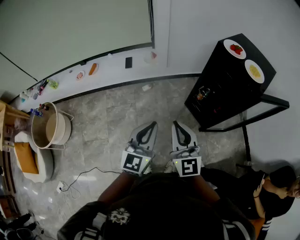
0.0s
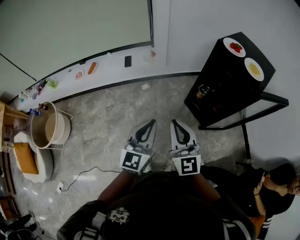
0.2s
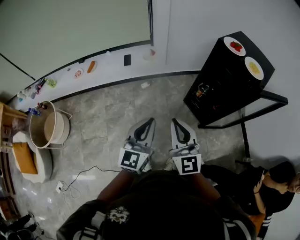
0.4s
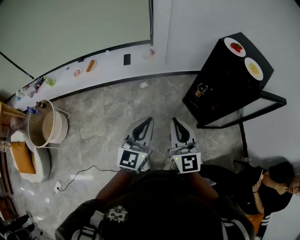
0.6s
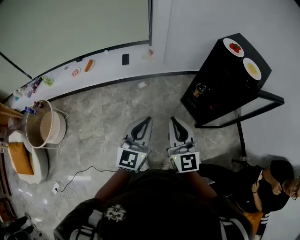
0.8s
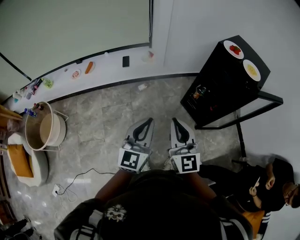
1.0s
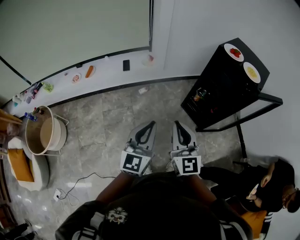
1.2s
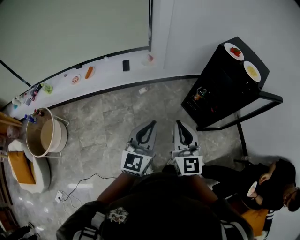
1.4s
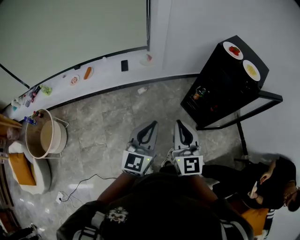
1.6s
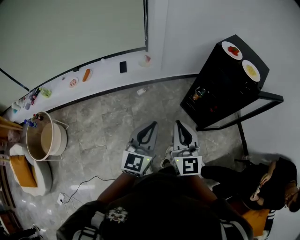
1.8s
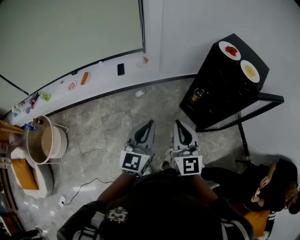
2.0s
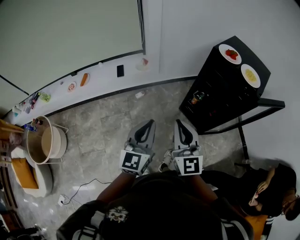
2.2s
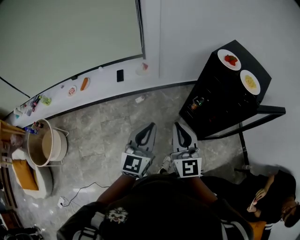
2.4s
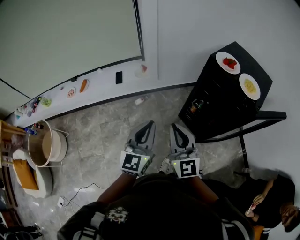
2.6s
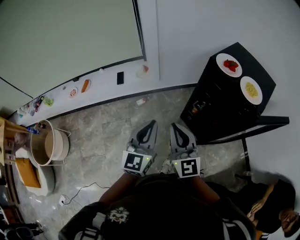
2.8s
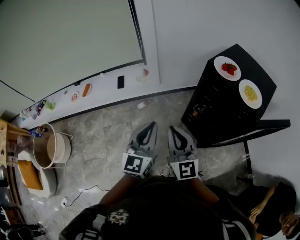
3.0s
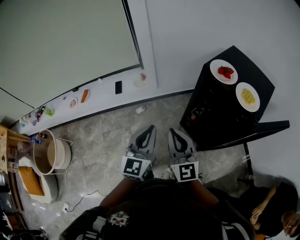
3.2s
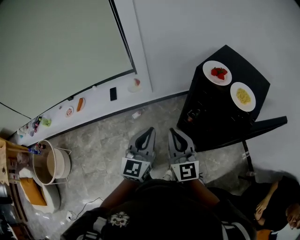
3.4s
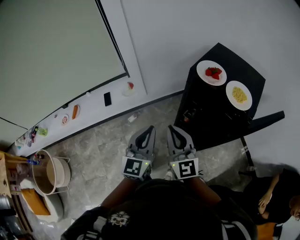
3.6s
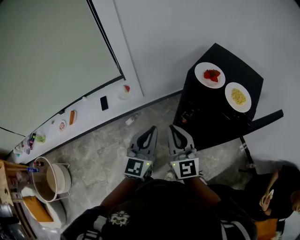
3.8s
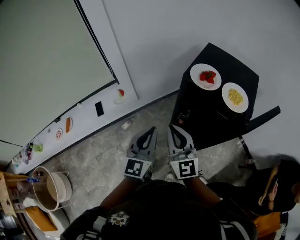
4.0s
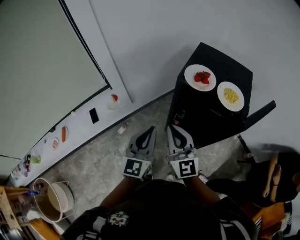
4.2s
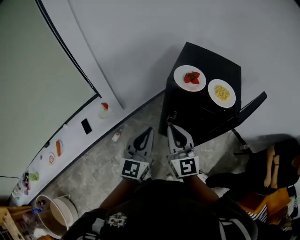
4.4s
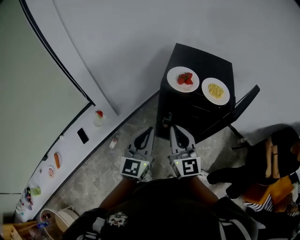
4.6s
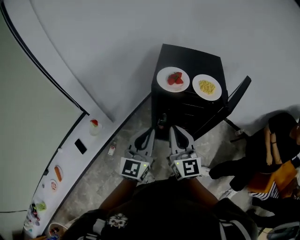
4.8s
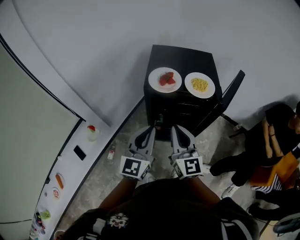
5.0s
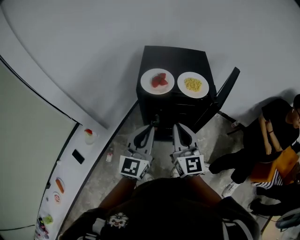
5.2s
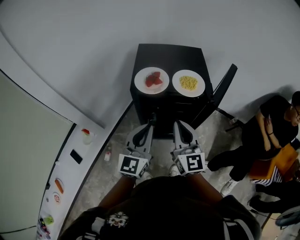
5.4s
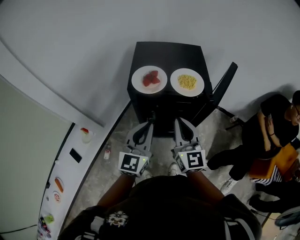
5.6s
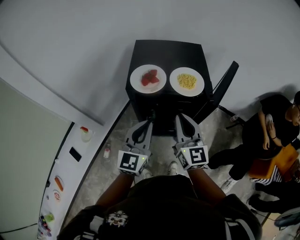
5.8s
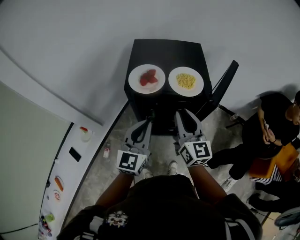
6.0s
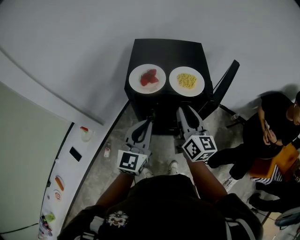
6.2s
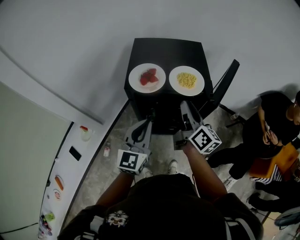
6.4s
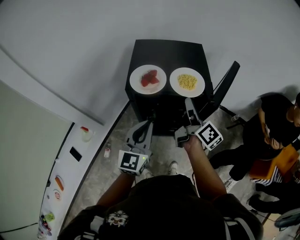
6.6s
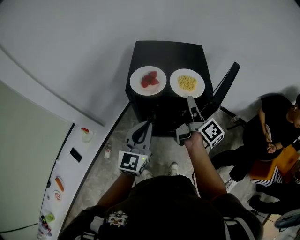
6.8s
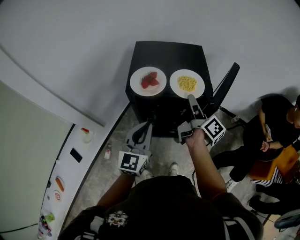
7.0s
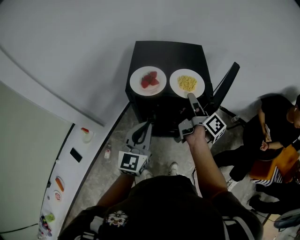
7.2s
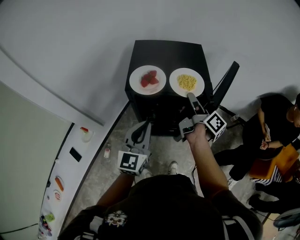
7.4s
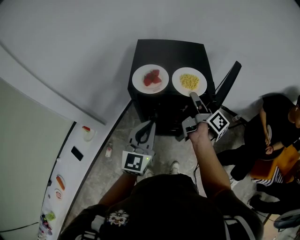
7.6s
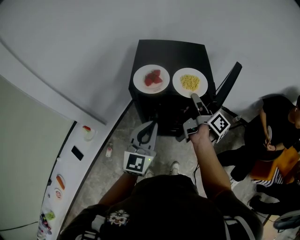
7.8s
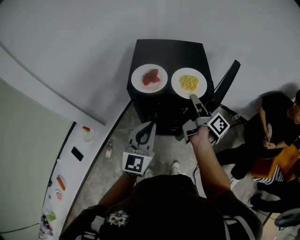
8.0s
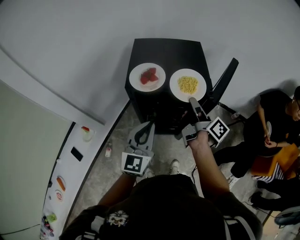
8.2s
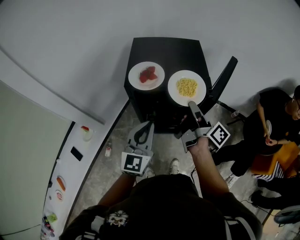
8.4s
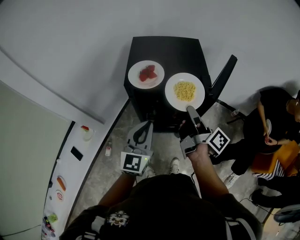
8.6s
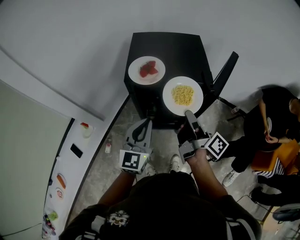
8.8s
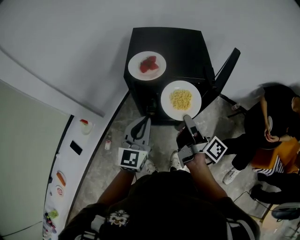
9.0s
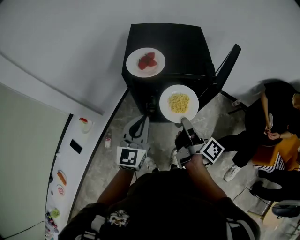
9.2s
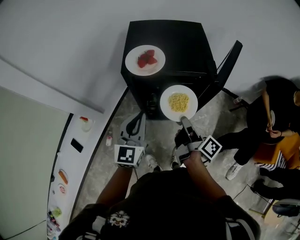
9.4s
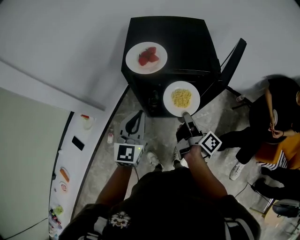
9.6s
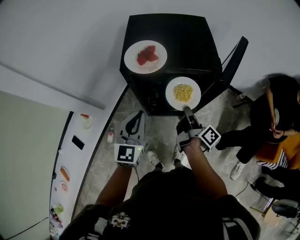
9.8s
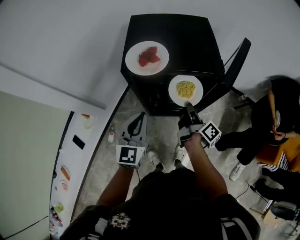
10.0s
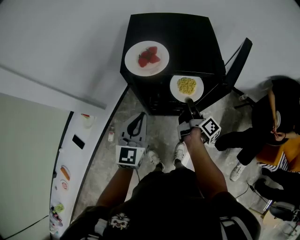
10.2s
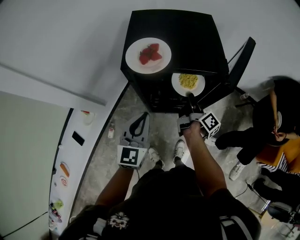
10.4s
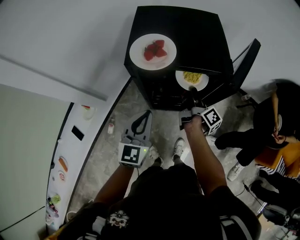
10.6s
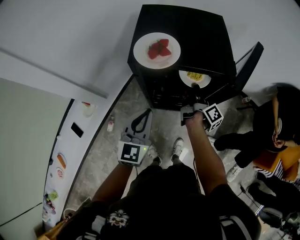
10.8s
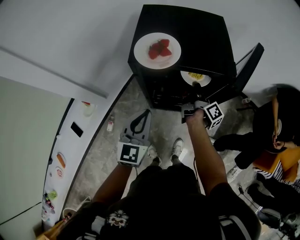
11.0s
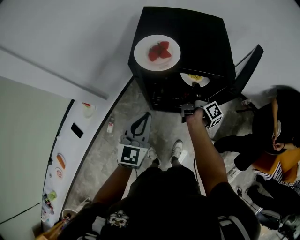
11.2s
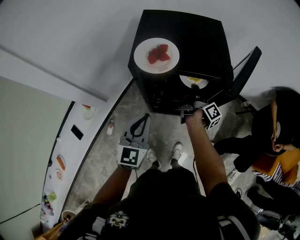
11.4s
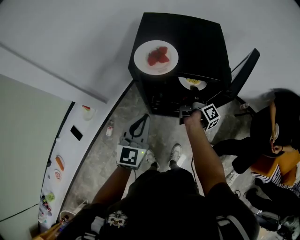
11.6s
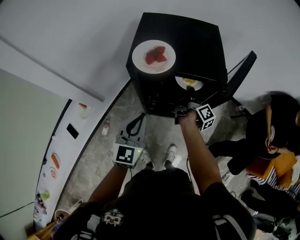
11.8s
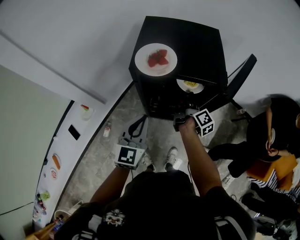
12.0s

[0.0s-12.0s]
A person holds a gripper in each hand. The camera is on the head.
0.0s to 1.6s: Both grippers travel together to the left, some 5 cm.
1.6s to 3.0s: Both grippers travel together forward and to the right, roughly 20 cm.
3.0s to 4.4s: The right gripper moves approximately 15 cm, and changes its angle by some 30 degrees. The left gripper changes place by some 15 cm, and rotates roughly 30 degrees.
4.4s to 6.0s: The two grippers go approximately 15 cm to the right and forward. The right gripper turns by roughly 30 degrees, while the left gripper turns by roughly 20 degrees.
6.0s to 7.6s: The right gripper travels forward by roughly 10 cm, and rolls clockwise, seen from behind, by about 70 degrees.
7.6s to 9.0s: The right gripper goes approximately 15 cm backward. The left gripper moves about 5 cm.
9.0s to 10.4s: The right gripper shifts roughly 20 cm downward and forward.
10.4s to 12.0s: The right gripper opens.

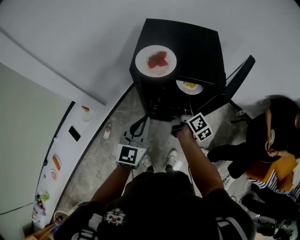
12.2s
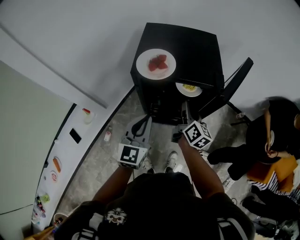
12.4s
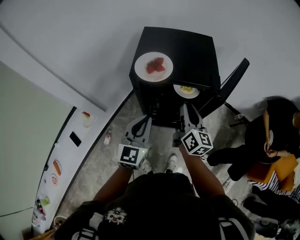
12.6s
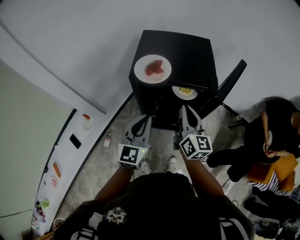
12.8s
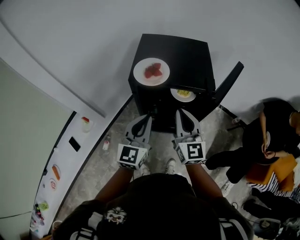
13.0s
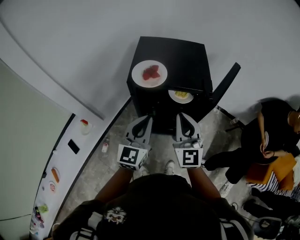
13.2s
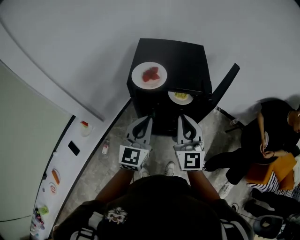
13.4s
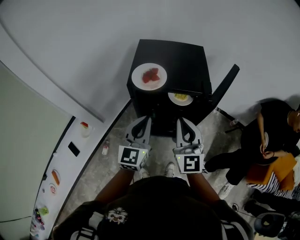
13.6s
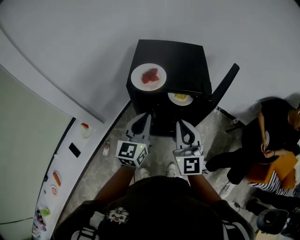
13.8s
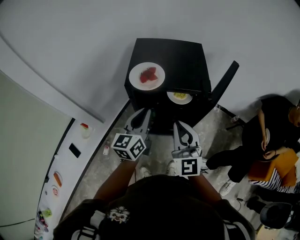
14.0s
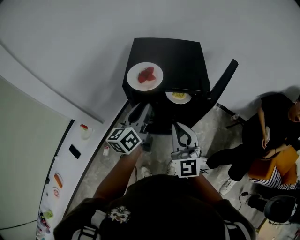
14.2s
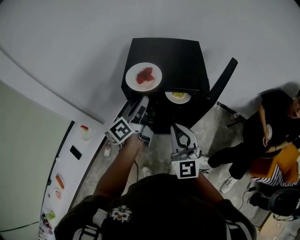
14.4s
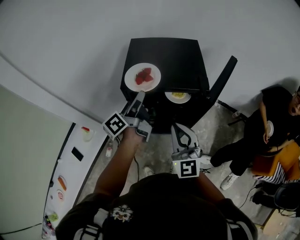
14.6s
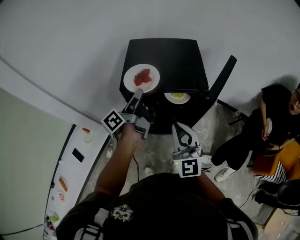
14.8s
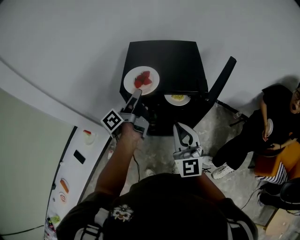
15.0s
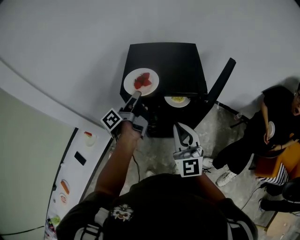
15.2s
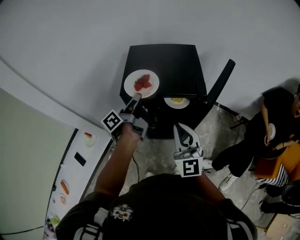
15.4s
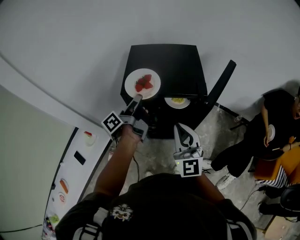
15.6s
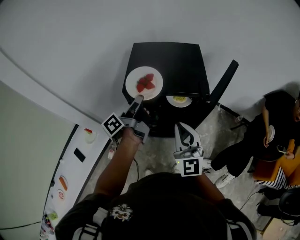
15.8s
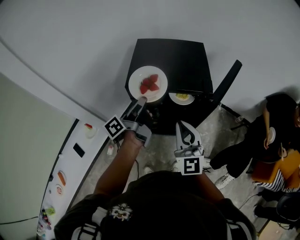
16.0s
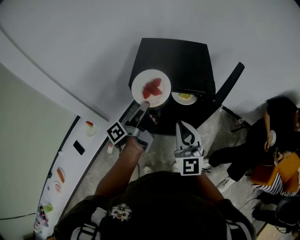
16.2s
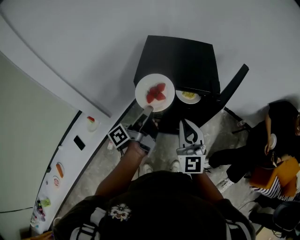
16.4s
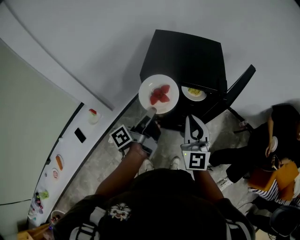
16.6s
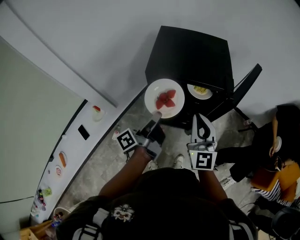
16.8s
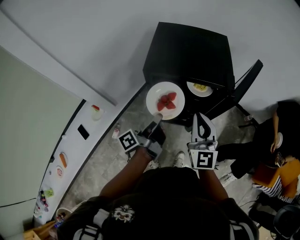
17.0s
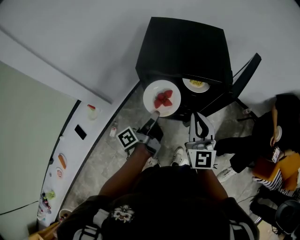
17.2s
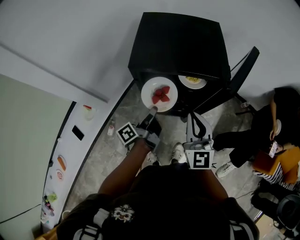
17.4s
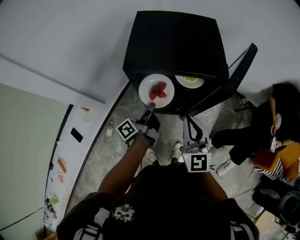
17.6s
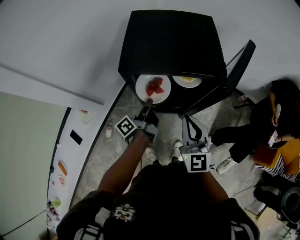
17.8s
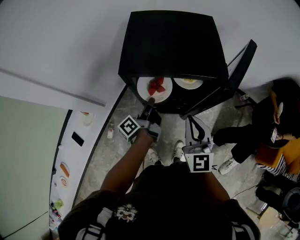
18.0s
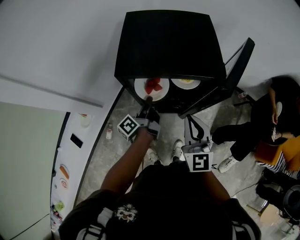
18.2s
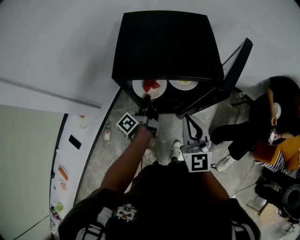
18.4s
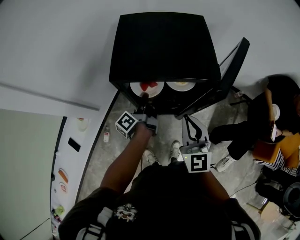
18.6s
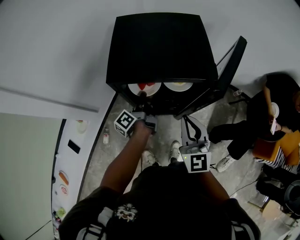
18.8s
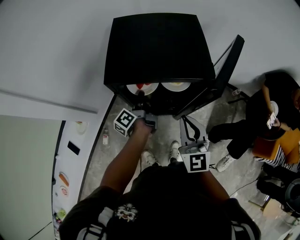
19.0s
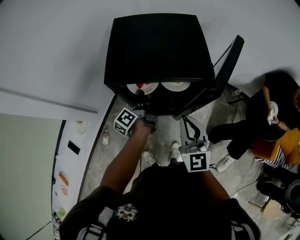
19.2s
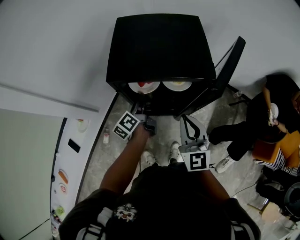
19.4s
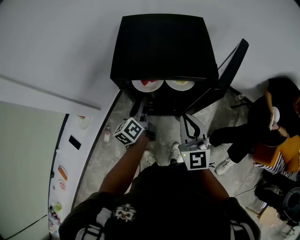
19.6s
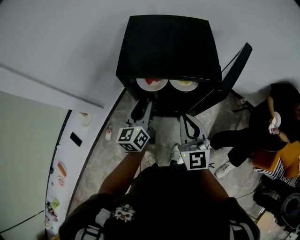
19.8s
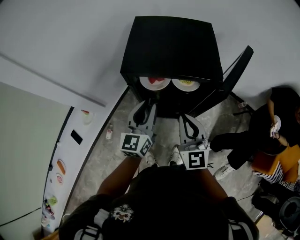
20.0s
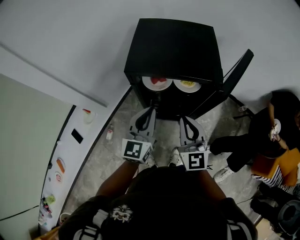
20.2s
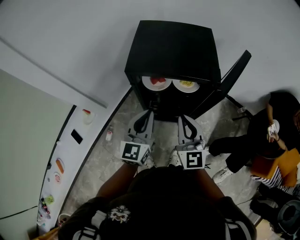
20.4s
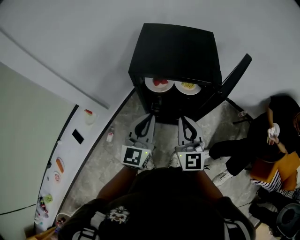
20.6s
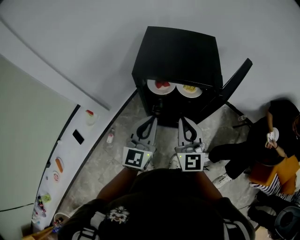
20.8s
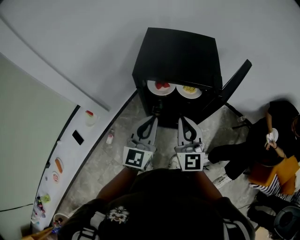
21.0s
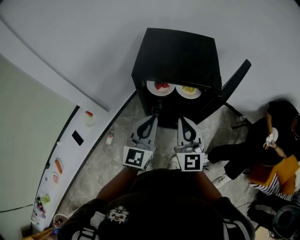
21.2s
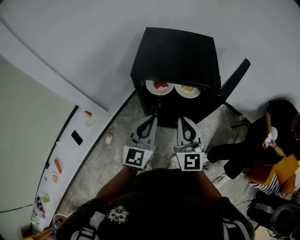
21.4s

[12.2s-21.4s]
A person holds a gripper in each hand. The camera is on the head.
12.2s to 13.8s: The right gripper is displaced upward and backward by some 20 cm, rolls counterclockwise, seen from behind, by roughly 70 degrees, and closes up. The left gripper goes approximately 5 cm upward.
13.8s to 15.2s: The left gripper travels forward by about 10 cm, and rolls counterclockwise, seen from behind, by about 80 degrees.
15.2s to 16.8s: The left gripper heads backward and downward, covering some 15 cm.
16.8s to 18.4s: The right gripper is displaced downward by roughly 5 cm. The left gripper travels downward and forward by roughly 20 cm.
18.4s to 19.8s: The left gripper heads upward, covering approximately 10 cm, rotates around the line of its fingers by approximately 60 degrees, clockwise from behind, and opens its fingers.
19.8s to 21.4s: The right gripper moves approximately 5 cm; the left gripper shifts roughly 15 cm backward and upward, changes its angle by some 30 degrees, and closes.

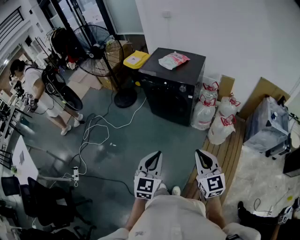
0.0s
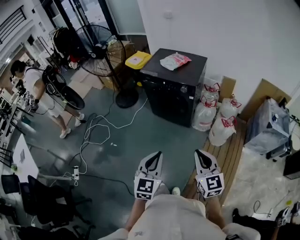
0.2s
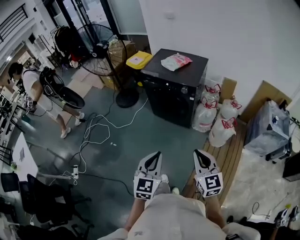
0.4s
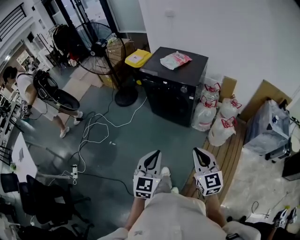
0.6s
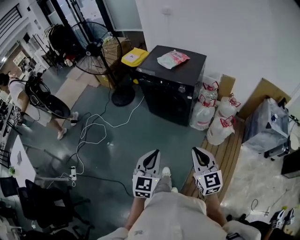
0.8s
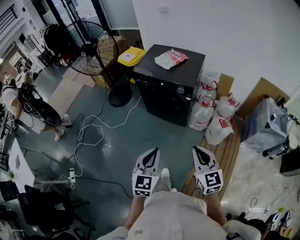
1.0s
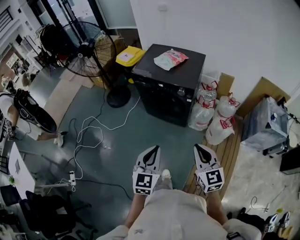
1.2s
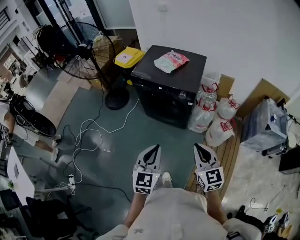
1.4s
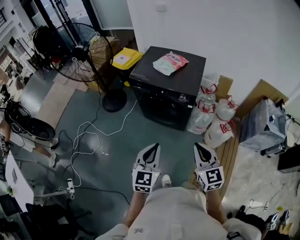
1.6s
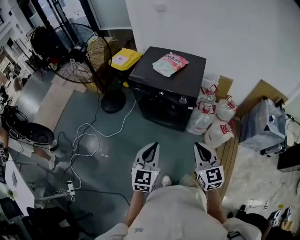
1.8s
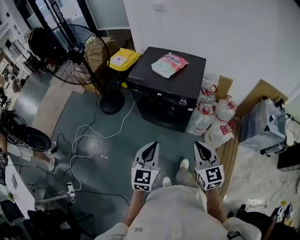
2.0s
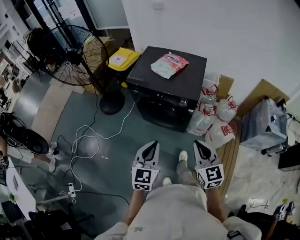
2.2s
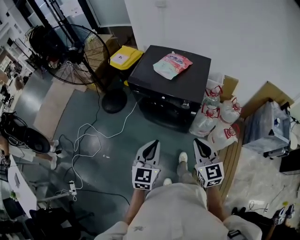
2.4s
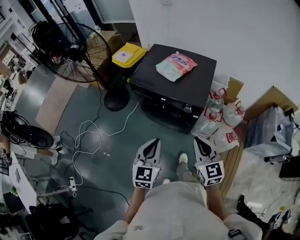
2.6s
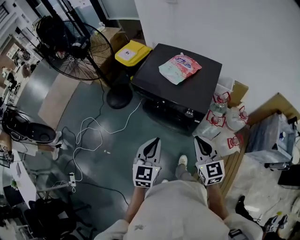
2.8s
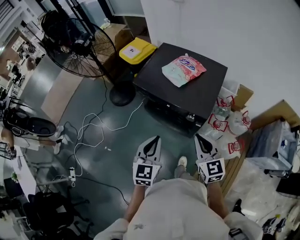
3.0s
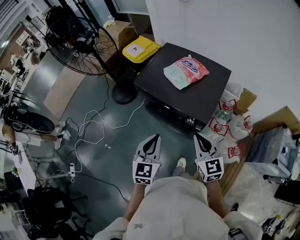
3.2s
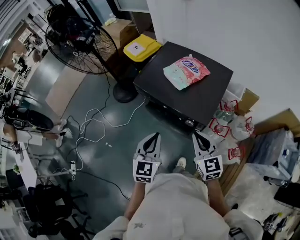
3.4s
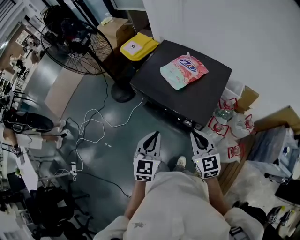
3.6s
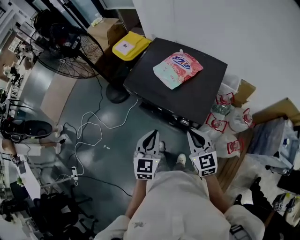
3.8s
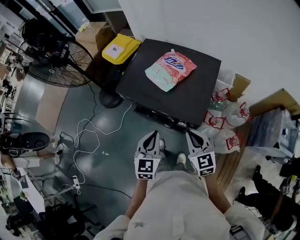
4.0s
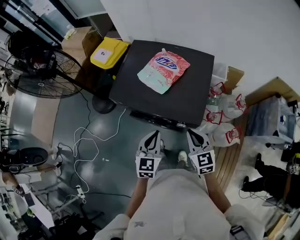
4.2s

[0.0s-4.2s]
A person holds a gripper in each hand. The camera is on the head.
0.0s to 1.4s: Both grippers move forward, roughly 20 cm.
1.4s to 2.8s: The two grippers go about 25 cm forward.
2.8s to 4.2s: The two grippers go about 20 cm forward and downward.
